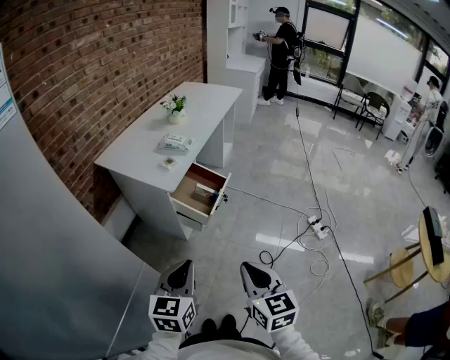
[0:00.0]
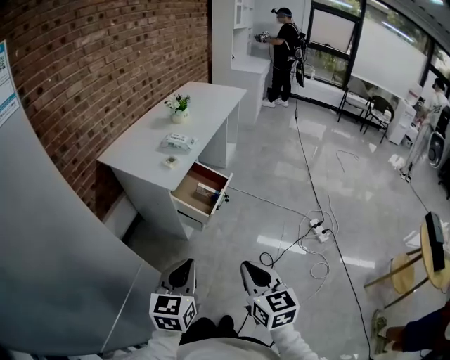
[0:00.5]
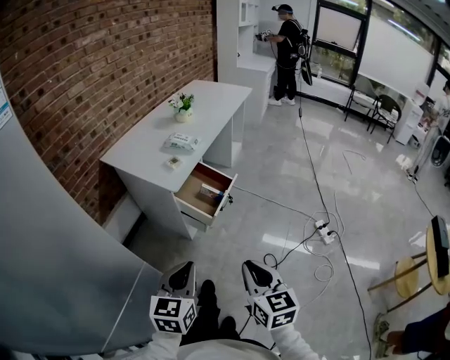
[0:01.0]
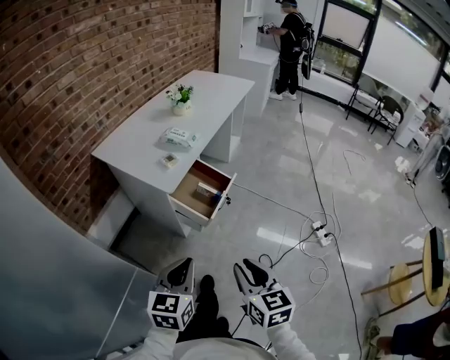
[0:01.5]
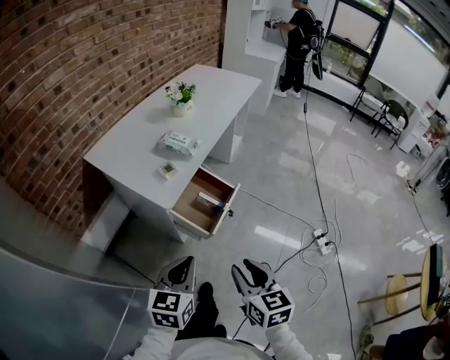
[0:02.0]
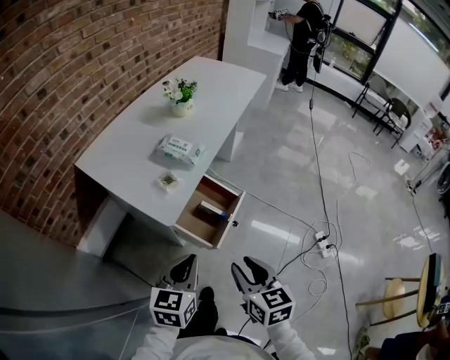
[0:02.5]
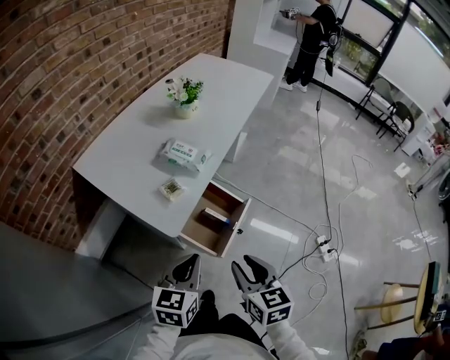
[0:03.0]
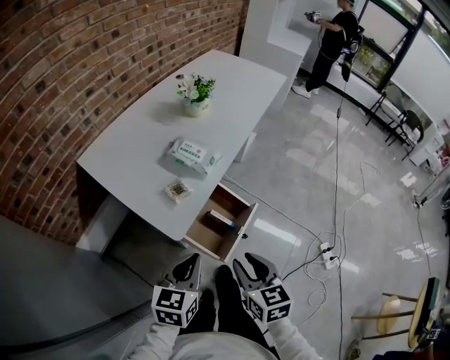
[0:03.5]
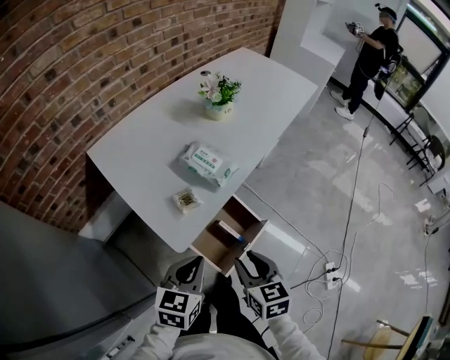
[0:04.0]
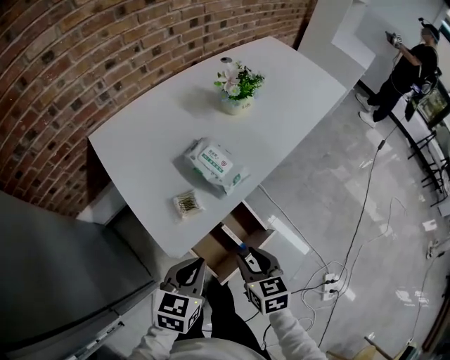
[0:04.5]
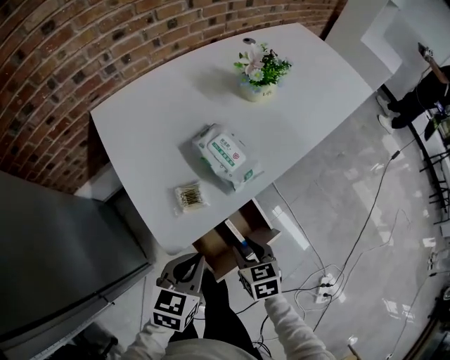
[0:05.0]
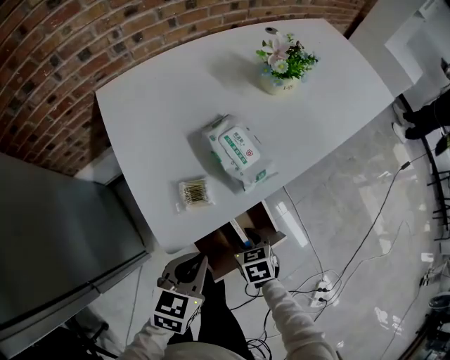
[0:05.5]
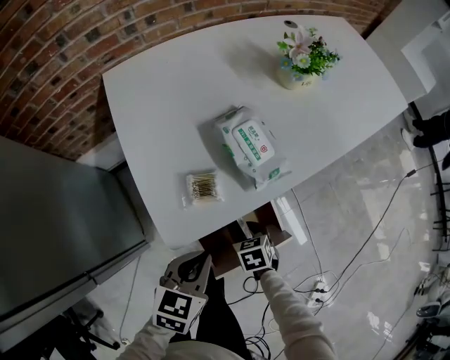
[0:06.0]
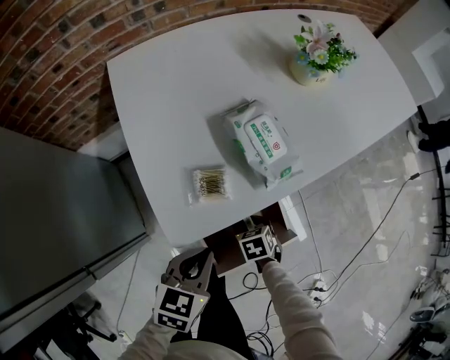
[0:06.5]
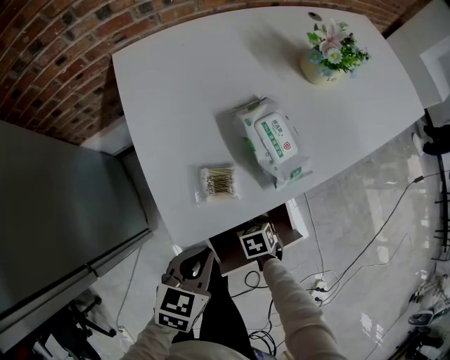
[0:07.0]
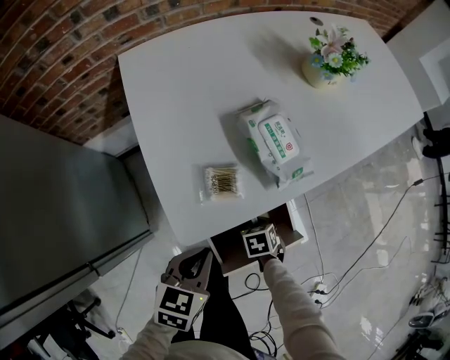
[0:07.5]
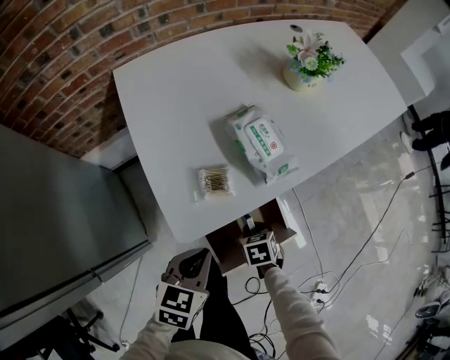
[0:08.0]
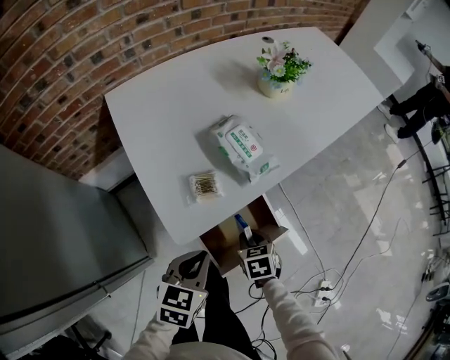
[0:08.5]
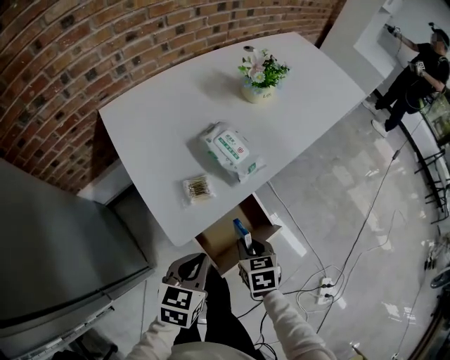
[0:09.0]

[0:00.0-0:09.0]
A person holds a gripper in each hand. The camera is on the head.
0:00.0 to 0:02.0: The two grippers go roughly 20 cm forward. The right gripper opens.
0:02.0 to 0:04.5: Both grippers move forward, approximately 30 cm. The right gripper changes its angle by about 30 degrees.
0:04.5 to 0:07.0: The right gripper shifts roughly 25 cm downward, and angles its fingers downward, by some 30 degrees. The left gripper shifts about 10 cm downward.
0:07.0 to 0:09.0: The right gripper shifts about 20 cm upward, and turns by some 30 degrees, while the left gripper goes about 5 cm upward.

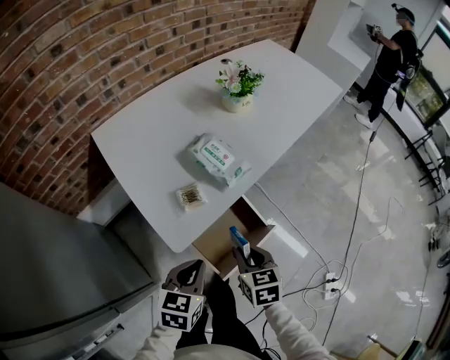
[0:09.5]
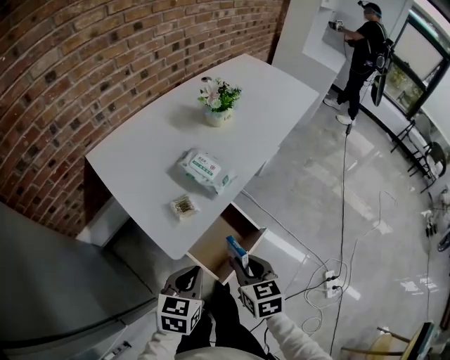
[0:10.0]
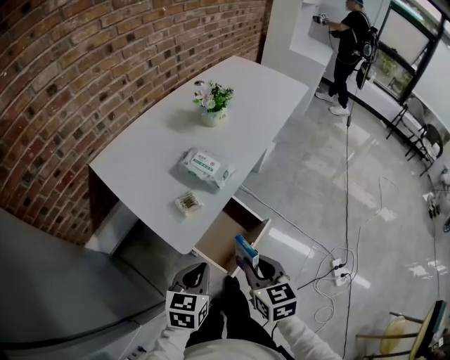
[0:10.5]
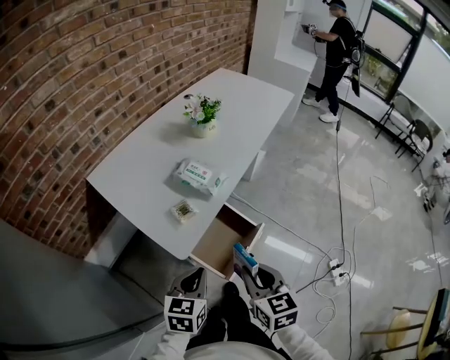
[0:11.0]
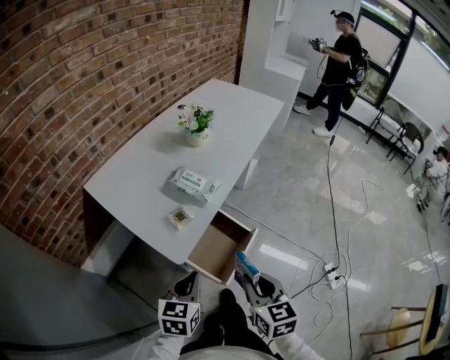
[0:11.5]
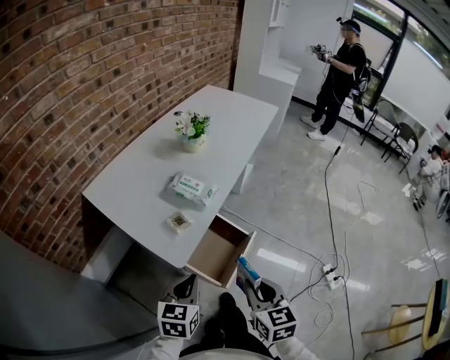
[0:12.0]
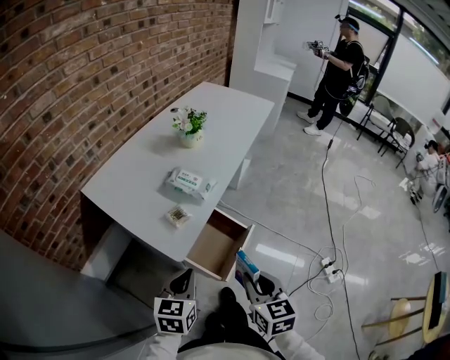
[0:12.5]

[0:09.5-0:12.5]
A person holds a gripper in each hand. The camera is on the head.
0:09.5 to 0:11.0: The left gripper ends up roughly 5 cm from where it was. Meanwhile the right gripper heads upward and backward, covering about 15 cm.
0:11.0 to 0:12.5: The grippers move only a little.

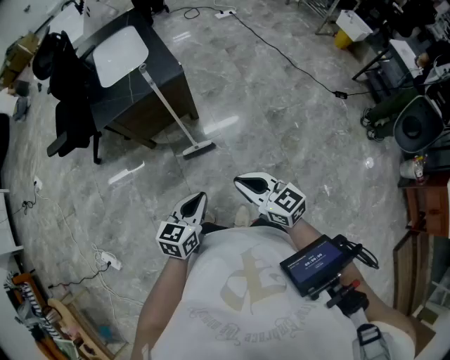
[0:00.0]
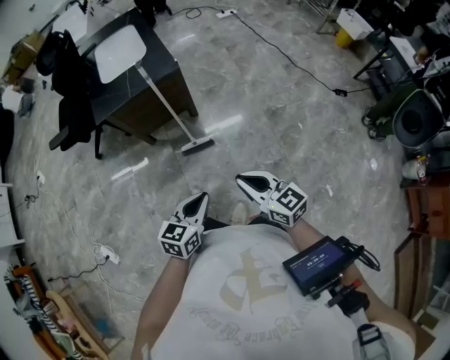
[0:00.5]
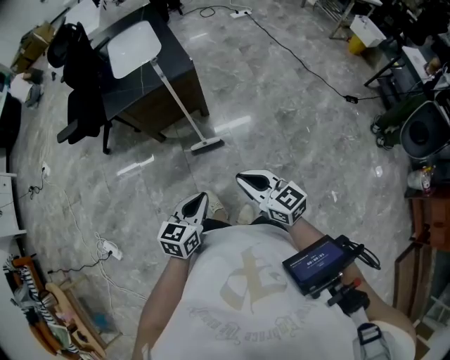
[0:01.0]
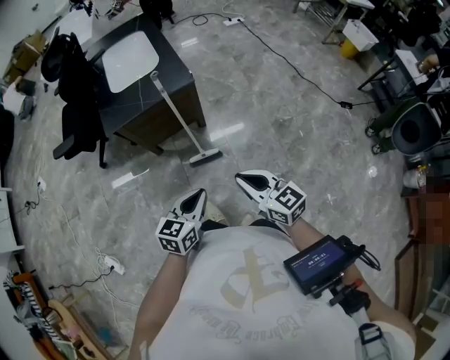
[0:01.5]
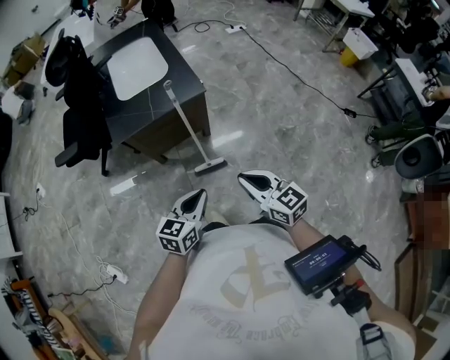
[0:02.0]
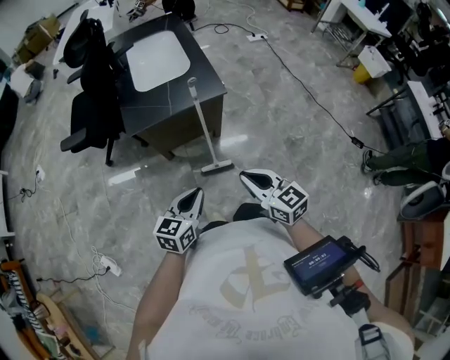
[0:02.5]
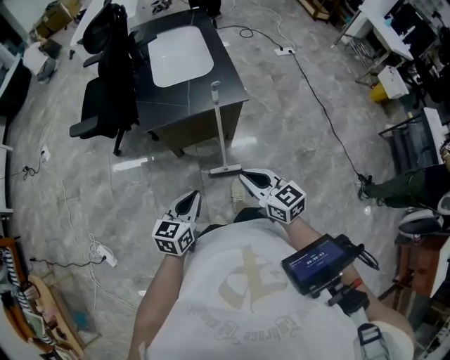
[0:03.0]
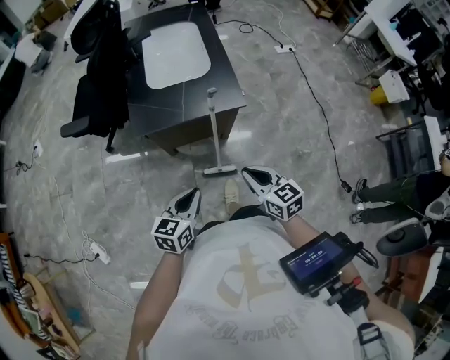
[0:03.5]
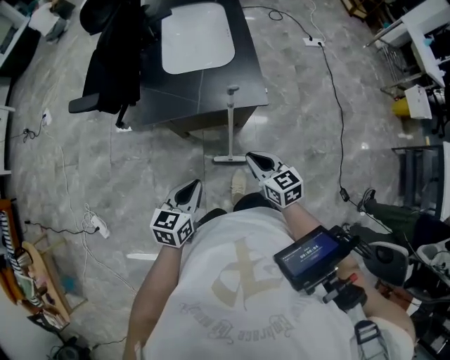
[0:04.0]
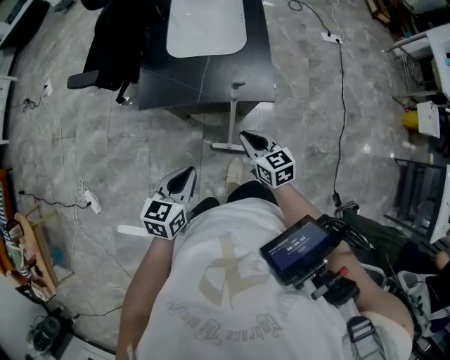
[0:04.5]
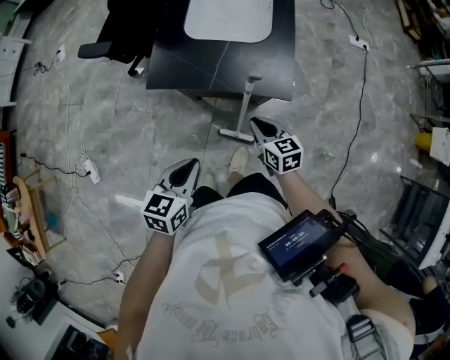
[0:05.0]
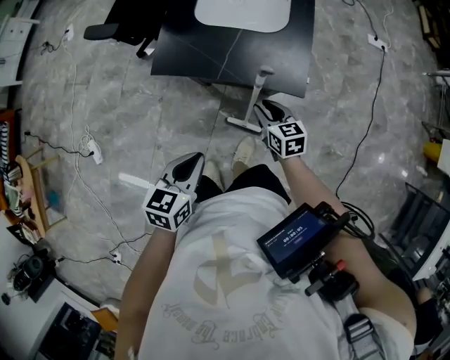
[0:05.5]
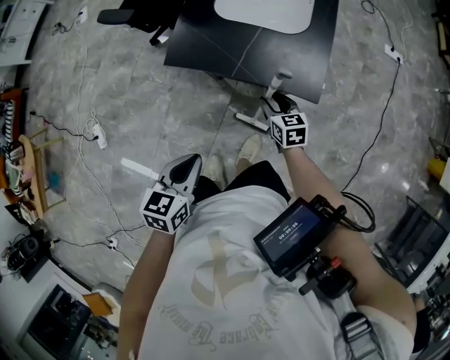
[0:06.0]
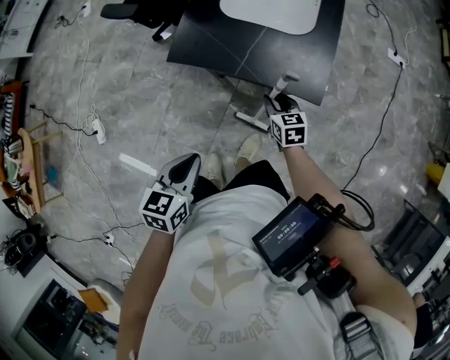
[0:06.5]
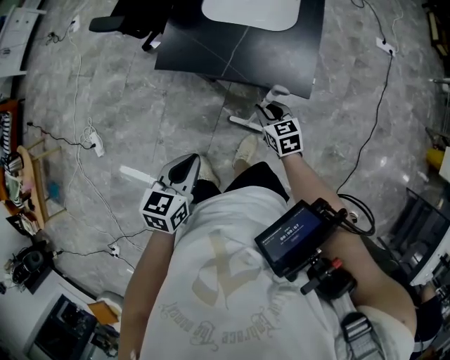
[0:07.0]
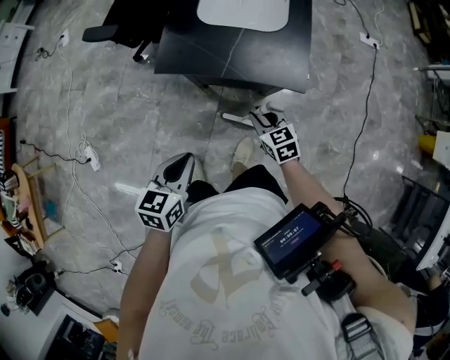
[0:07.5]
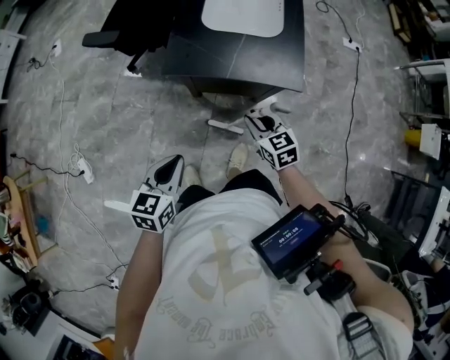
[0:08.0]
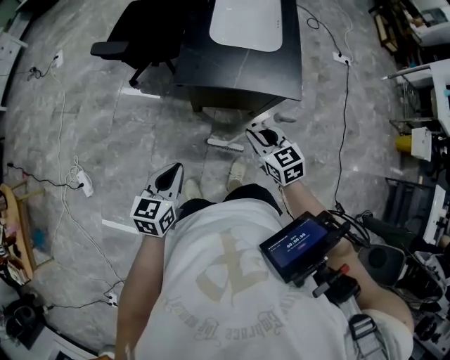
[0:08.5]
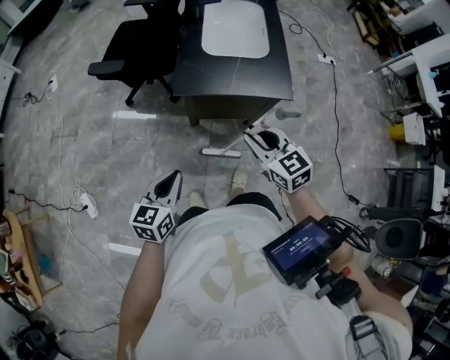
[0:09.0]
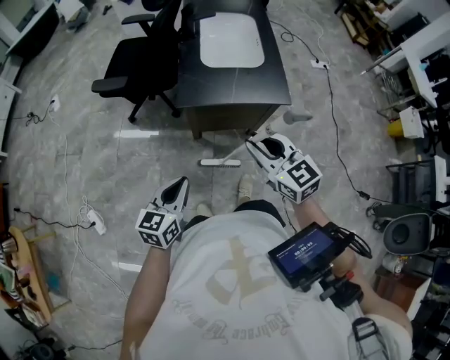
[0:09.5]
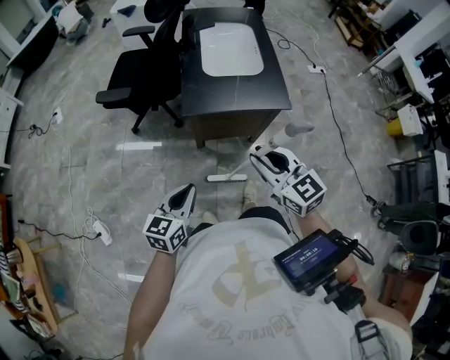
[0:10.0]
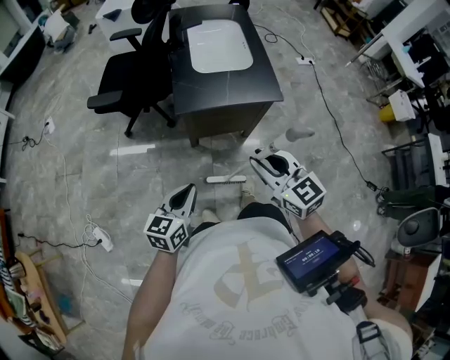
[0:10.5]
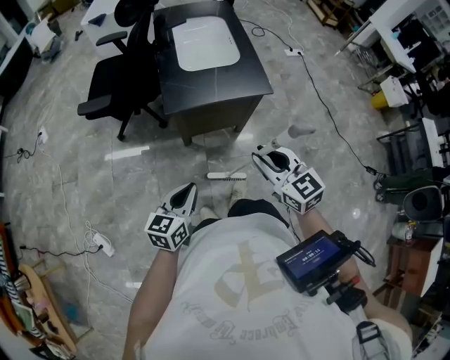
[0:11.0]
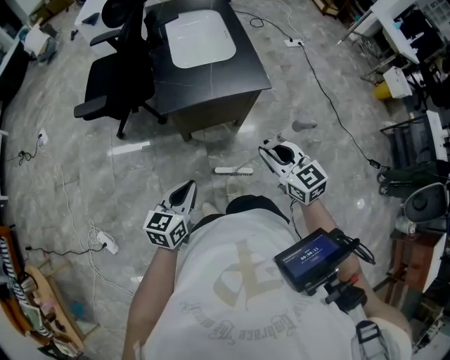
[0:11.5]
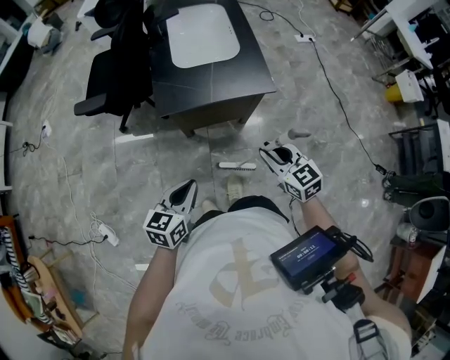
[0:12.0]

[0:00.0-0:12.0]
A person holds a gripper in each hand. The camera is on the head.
0:00.0 to 0:02.0: Both grippers move forward and to the left, some 10 cm.
0:02.0 to 0:04.0: The right gripper is displaced forward and downward by about 25 cm; the left gripper travels forward and to the left by some 15 cm, and swivels some 20 degrees.
0:04.0 to 0:06.0: The left gripper swivels roughly 20 degrees. Meanwhile the right gripper moves downward and forward, about 20 cm, and opens its fingers.
0:06.0 to 0:08.0: The left gripper moves to the left, roughly 10 cm. Meanwhile the right gripper shifts some 15 cm upward, backward and to the left.
0:08.0 to 0:10.0: The left gripper heads to the left, covering about 10 cm, while the right gripper goes approximately 25 cm upward, backward and to the left, and swivels roughly 20 degrees.
0:10.0 to 0:12.0: The right gripper shifts roughly 15 cm to the right and downward. Meanwhile the left gripper is displaced to the right by roughly 5 cm.

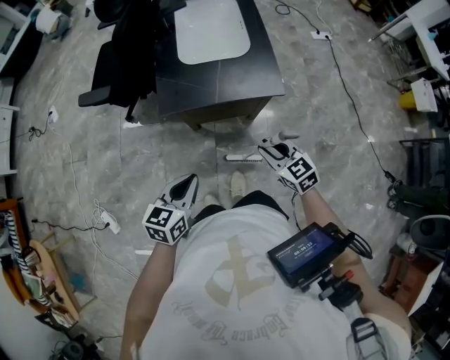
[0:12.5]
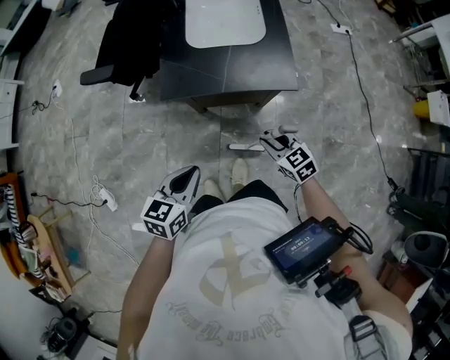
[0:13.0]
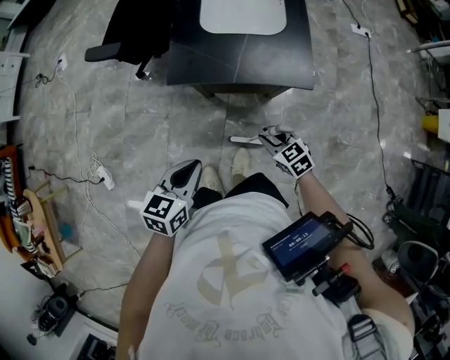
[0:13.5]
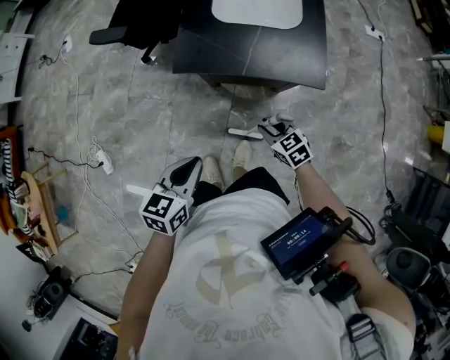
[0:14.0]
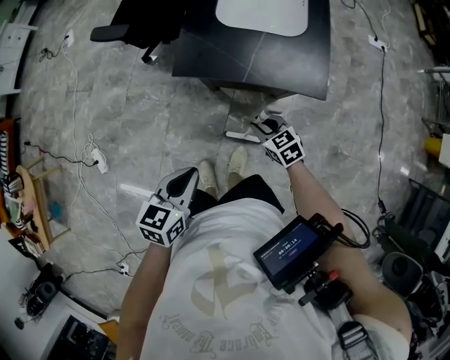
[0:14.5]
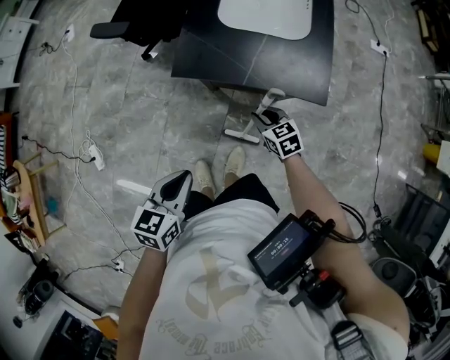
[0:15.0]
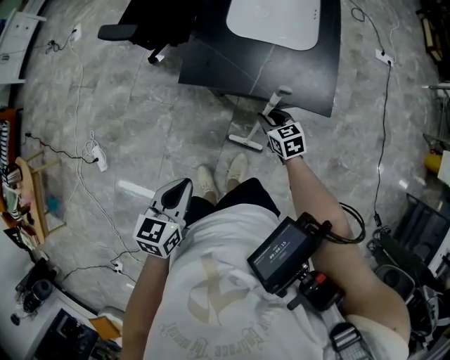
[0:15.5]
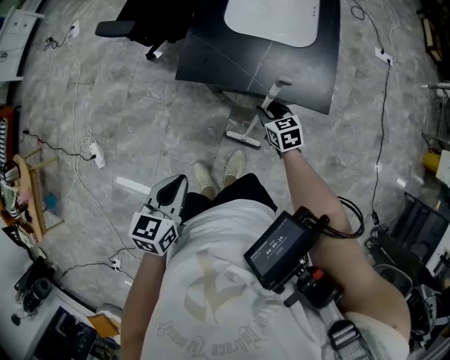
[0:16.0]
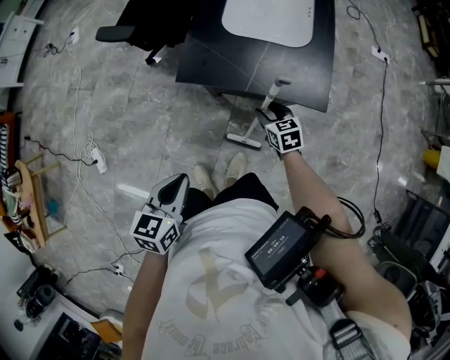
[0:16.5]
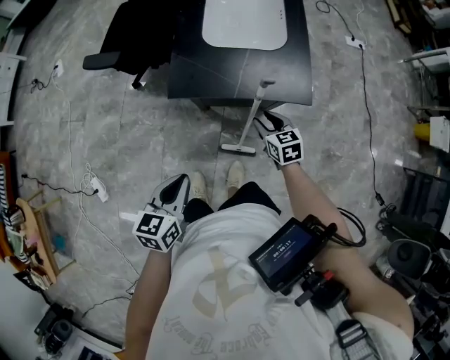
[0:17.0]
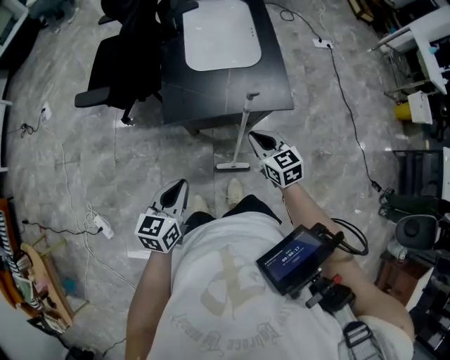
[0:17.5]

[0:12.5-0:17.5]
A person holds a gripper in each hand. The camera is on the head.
0:12.5 to 0:15.0: The right gripper heads downward and forward, covering approximately 20 cm.
0:15.0 to 0:17.5: The left gripper shifts some 5 cm forward; the right gripper is displaced upward by some 15 cm, and rotates some 20 degrees.
